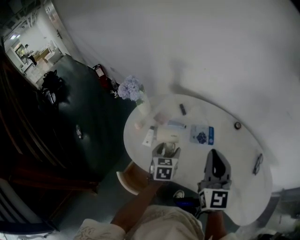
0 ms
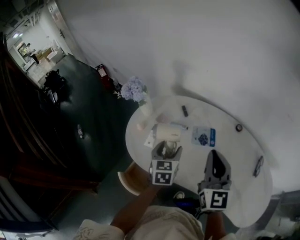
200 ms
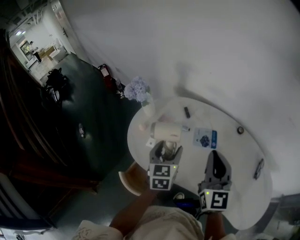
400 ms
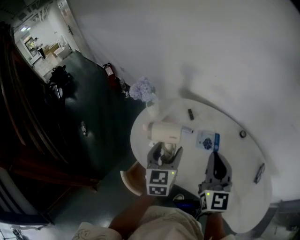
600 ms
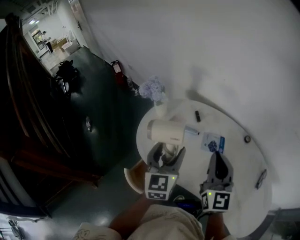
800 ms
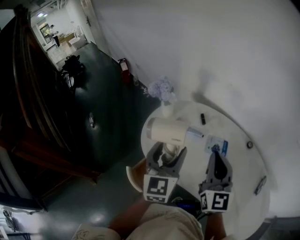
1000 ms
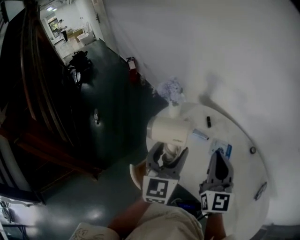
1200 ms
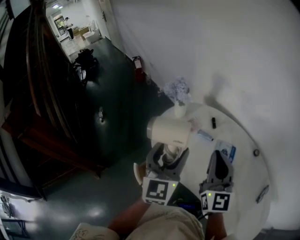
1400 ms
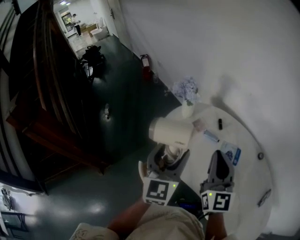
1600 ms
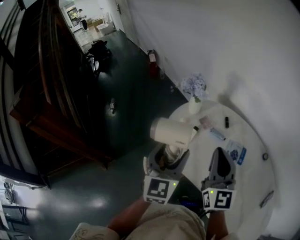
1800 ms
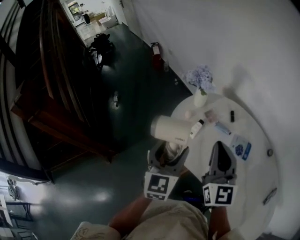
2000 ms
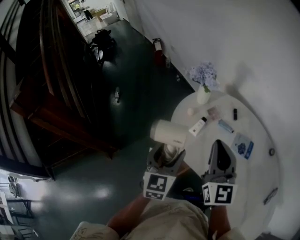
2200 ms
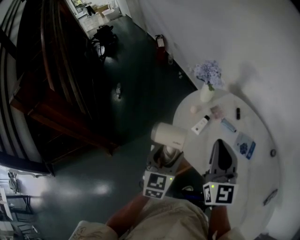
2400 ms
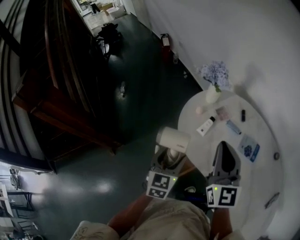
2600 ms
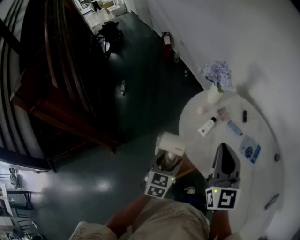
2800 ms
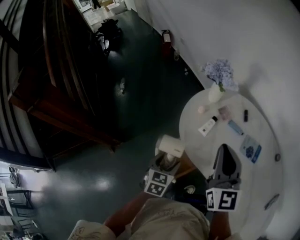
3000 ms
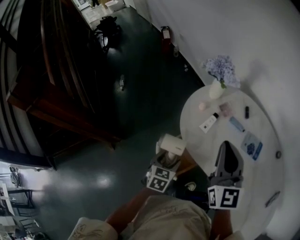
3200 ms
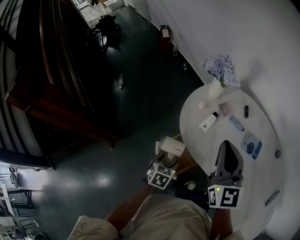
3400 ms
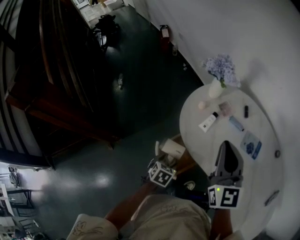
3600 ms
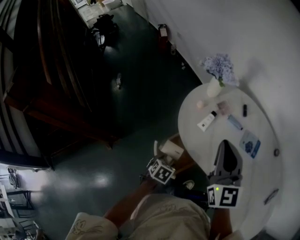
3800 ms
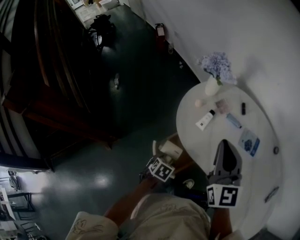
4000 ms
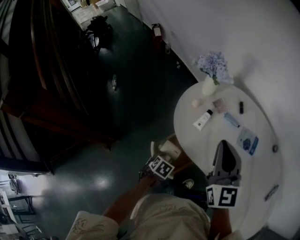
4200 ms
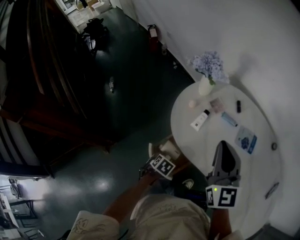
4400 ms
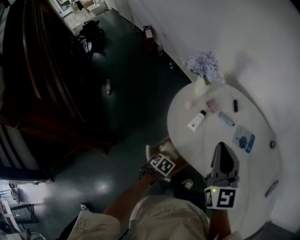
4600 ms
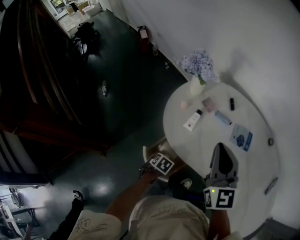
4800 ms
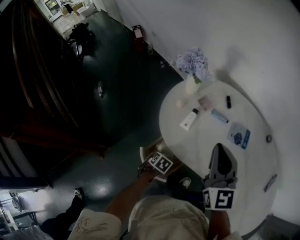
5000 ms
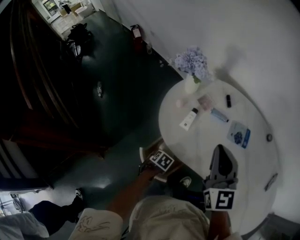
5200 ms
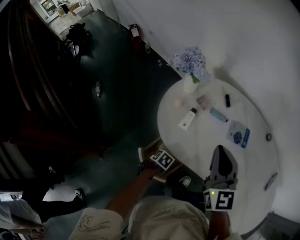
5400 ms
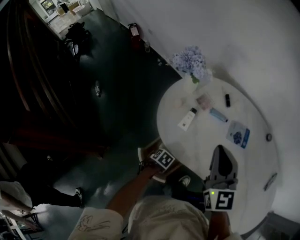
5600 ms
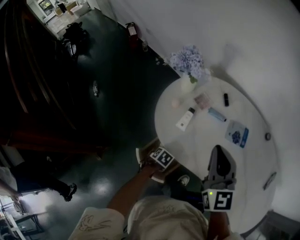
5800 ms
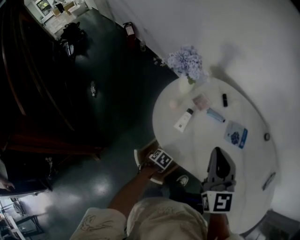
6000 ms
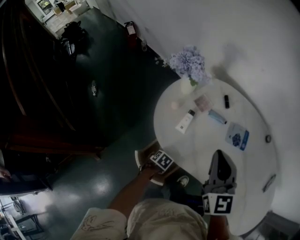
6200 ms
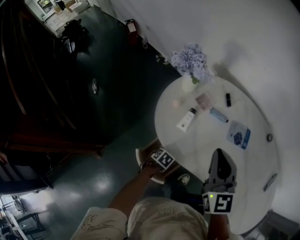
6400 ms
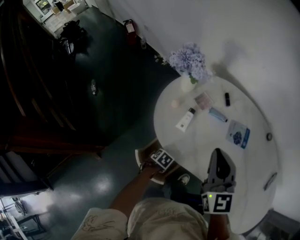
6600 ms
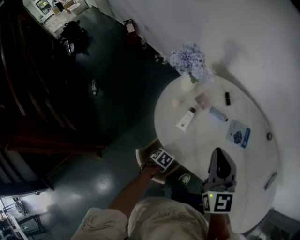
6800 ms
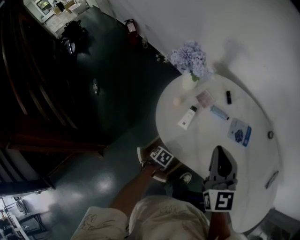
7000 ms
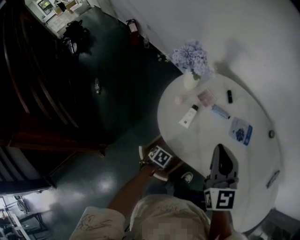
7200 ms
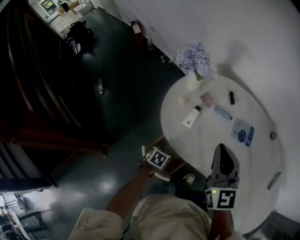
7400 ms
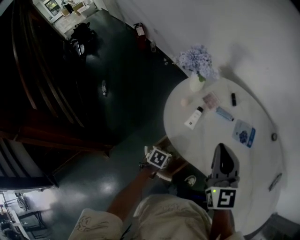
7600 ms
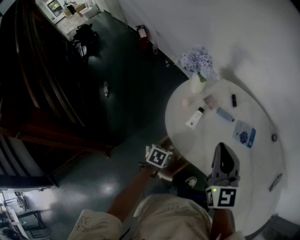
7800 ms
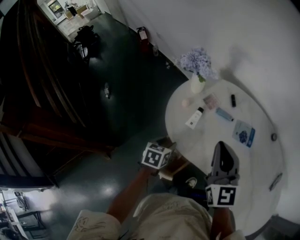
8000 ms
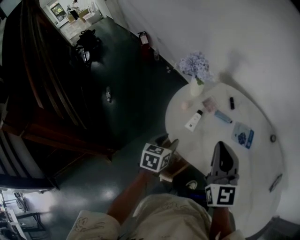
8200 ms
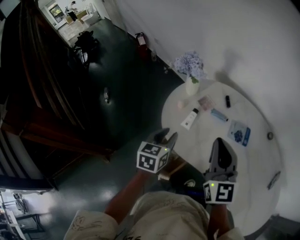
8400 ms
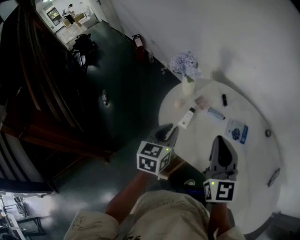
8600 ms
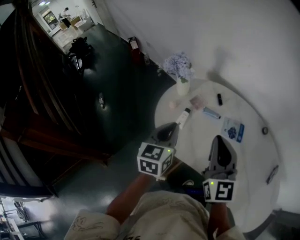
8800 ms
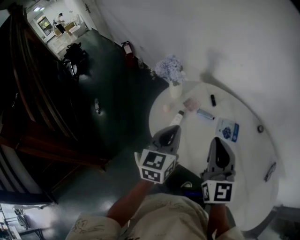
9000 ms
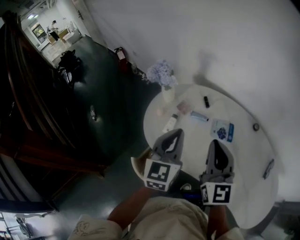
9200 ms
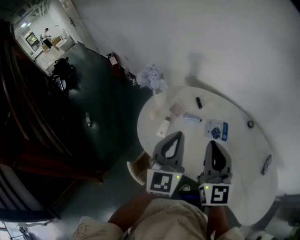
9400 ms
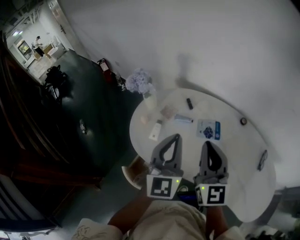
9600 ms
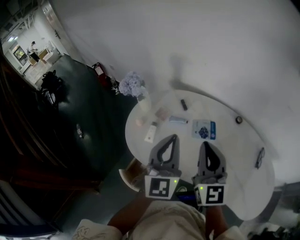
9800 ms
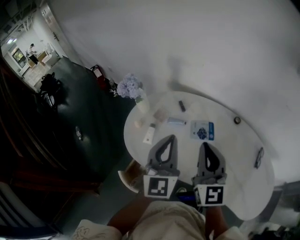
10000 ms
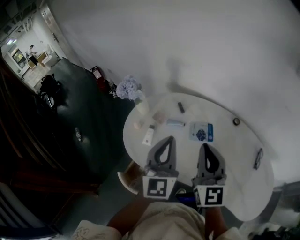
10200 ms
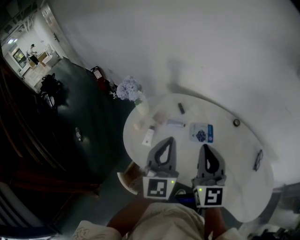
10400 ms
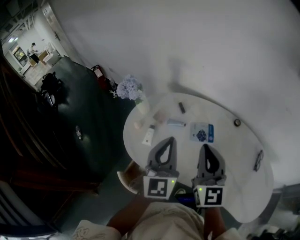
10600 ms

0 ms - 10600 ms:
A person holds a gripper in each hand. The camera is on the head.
0 ms - 1600 ms: The left gripper moves upward and to the left, approximately 25 cm, and angles its fingers upward, by approximately 30 degrees. The right gripper moves to the left, some 15 cm, and changes its angle by roughly 20 degrees.
1600 ms - 3000 ms: The left gripper is displaced downward by roughly 25 cm, and points its fingers some 40 degrees further downward. The right gripper goes roughly 10 cm to the left.
3000 ms - 4600 ms: The left gripper moves downward, approximately 15 cm, and tips its fingers downward by about 30 degrees.
4600 ms - 6000 ms: The left gripper moves downward, approximately 5 cm.
6000 ms - 7600 ms: The left gripper is displaced upward by approximately 10 cm.
7600 ms - 9000 ms: The left gripper is displaced upward by approximately 35 cm, angles its fingers upward, by some 50 degrees, and closes. Meanwhile the right gripper moves to the right, some 5 cm.
9000 ms - 10600 ms: The right gripper shifts approximately 10 cm to the right, while the left gripper moves to the right and upward, some 10 cm.

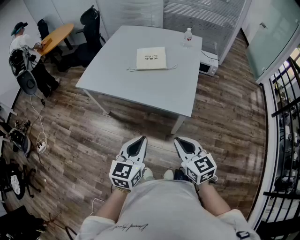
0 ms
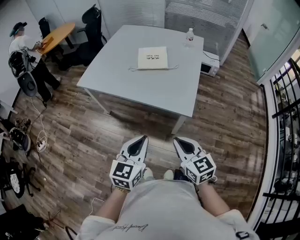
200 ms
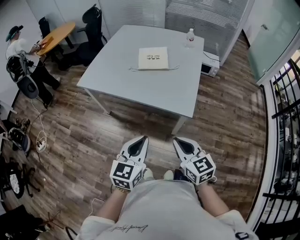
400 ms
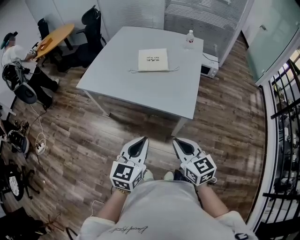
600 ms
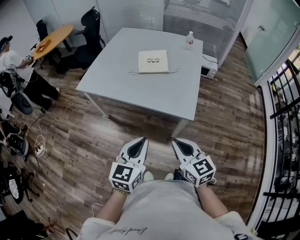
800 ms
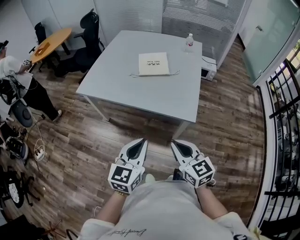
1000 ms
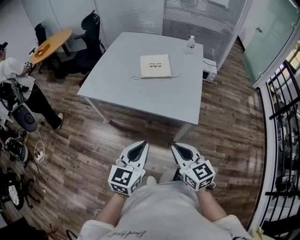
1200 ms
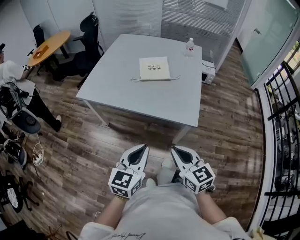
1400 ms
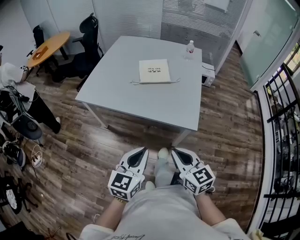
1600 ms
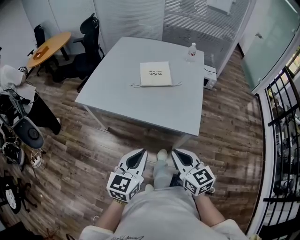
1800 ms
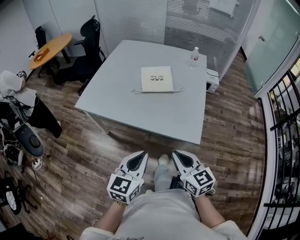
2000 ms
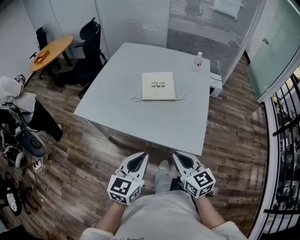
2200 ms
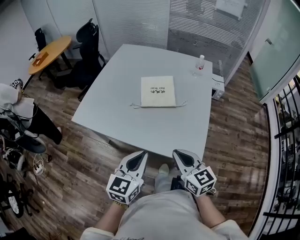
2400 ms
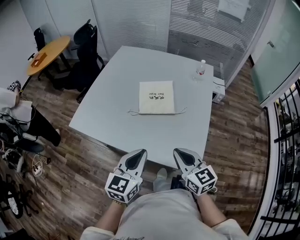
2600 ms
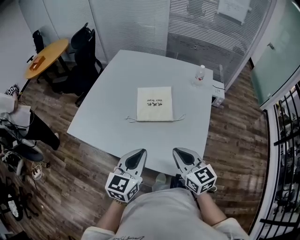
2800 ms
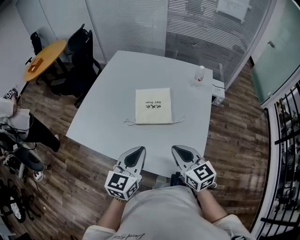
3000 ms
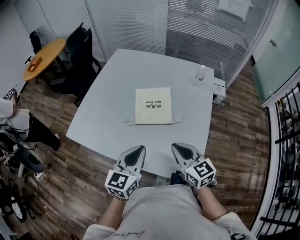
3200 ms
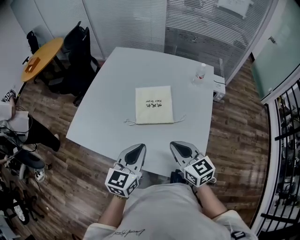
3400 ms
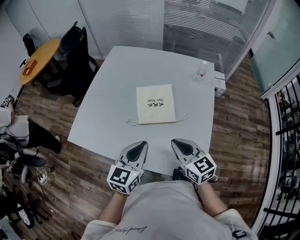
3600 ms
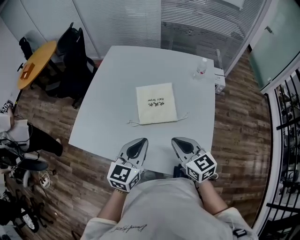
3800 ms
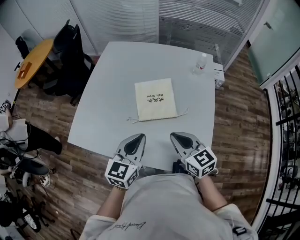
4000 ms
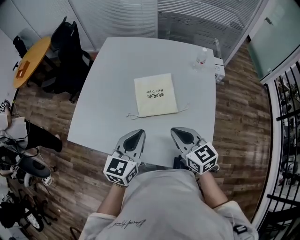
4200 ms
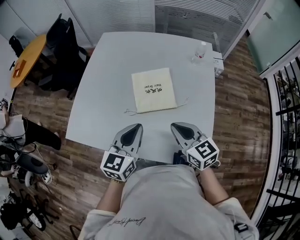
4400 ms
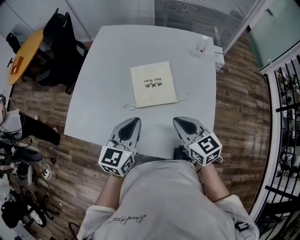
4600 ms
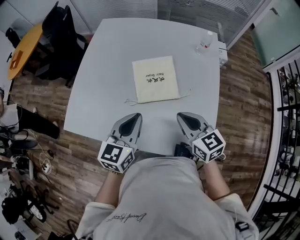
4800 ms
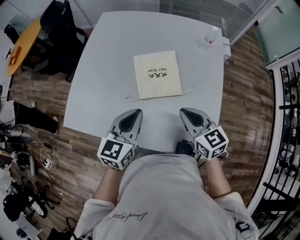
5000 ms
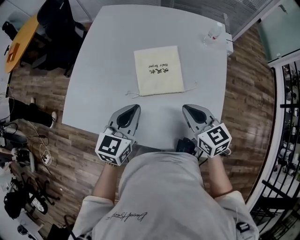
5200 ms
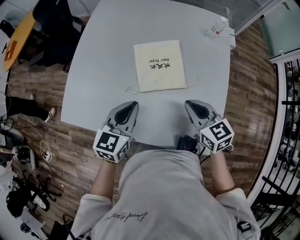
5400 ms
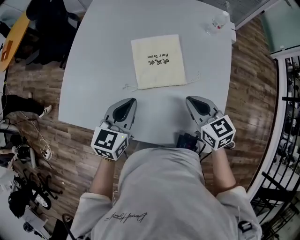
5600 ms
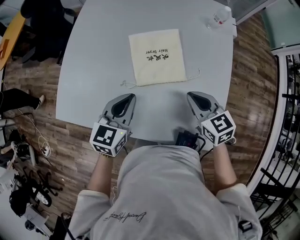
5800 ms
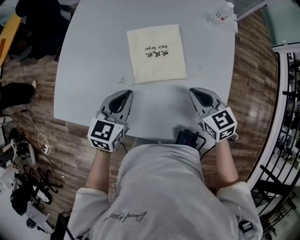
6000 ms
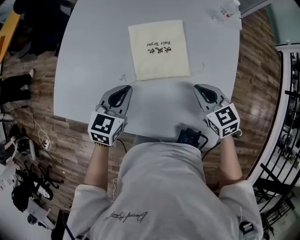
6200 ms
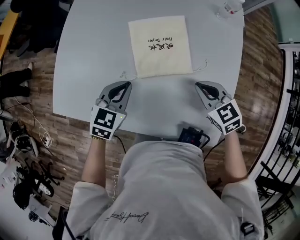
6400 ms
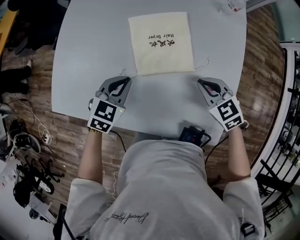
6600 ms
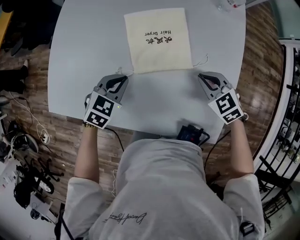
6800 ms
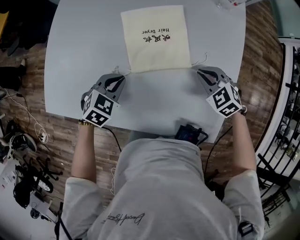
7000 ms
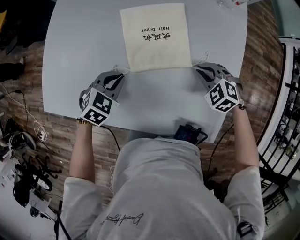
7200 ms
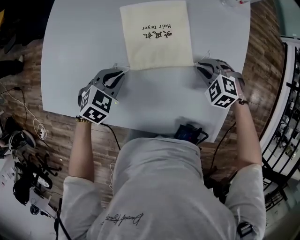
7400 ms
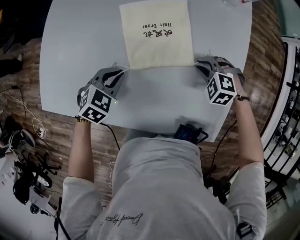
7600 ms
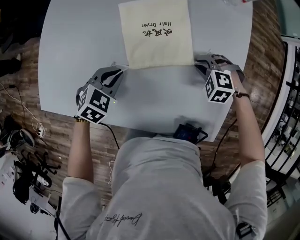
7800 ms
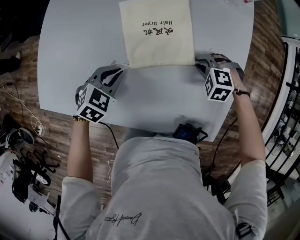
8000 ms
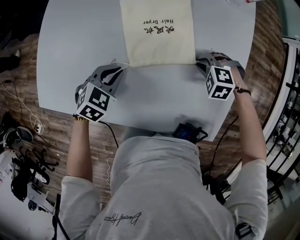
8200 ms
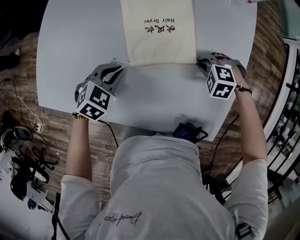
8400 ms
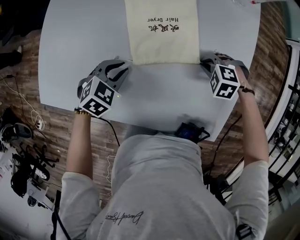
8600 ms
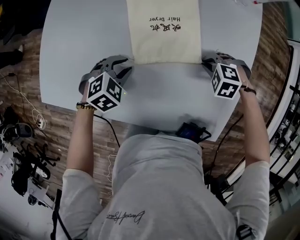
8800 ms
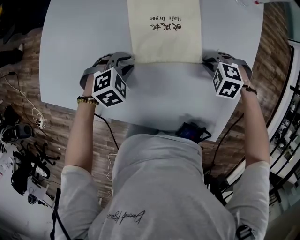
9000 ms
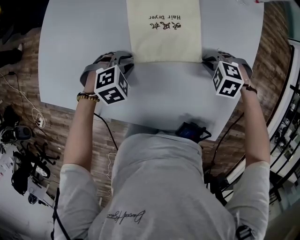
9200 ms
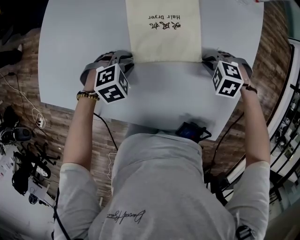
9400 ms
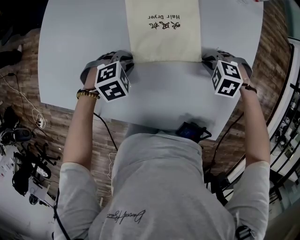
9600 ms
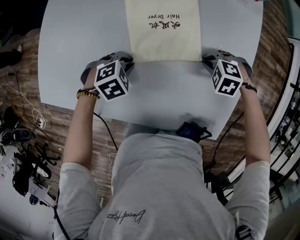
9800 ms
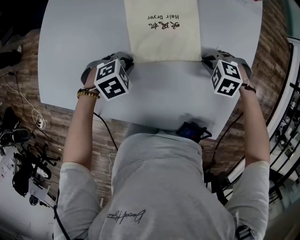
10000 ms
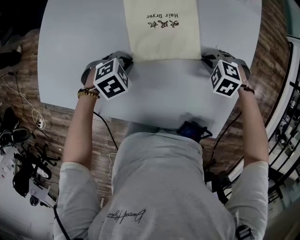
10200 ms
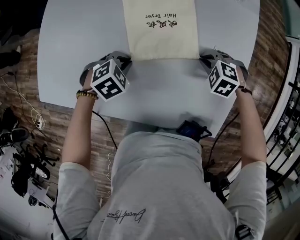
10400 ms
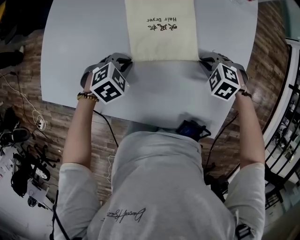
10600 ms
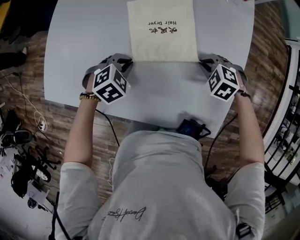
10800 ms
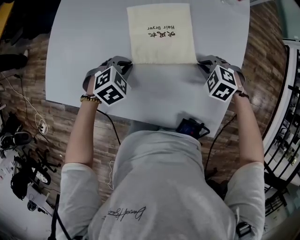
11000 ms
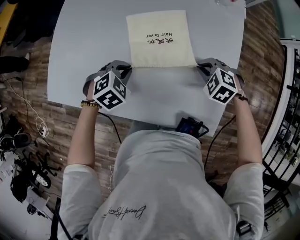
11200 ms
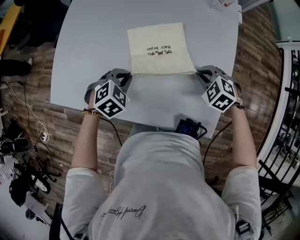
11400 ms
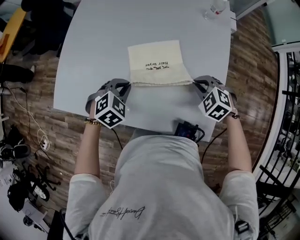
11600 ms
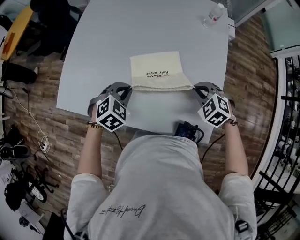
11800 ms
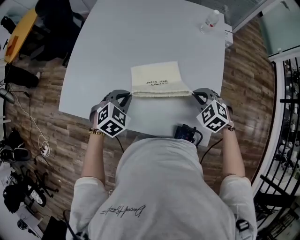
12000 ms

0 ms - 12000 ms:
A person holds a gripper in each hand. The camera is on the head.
0 ms - 1600 ms: The two grippers go about 5 cm to the left.
1600 ms - 3000 ms: The two grippers go some 30 cm forward.
3000 ms - 4400 ms: The grippers both shift forward by approximately 5 cm.
4400 ms - 6000 ms: The two grippers go roughly 10 cm downward and forward.
6000 ms - 7600 ms: Both grippers move downward, some 15 cm. The right gripper twists approximately 50 degrees counterclockwise, seen from behind, while the left gripper swivels about 40 degrees.
7600 ms - 9000 ms: The left gripper changes its angle by roughly 20 degrees, and opens.
9000 ms - 10400 ms: The left gripper closes its fingers.
10400 ms - 12000 ms: Both grippers move upward, approximately 15 cm. The right gripper turns by approximately 30 degrees; the left gripper changes its angle by roughly 20 degrees.

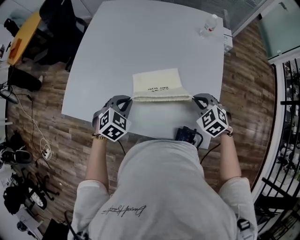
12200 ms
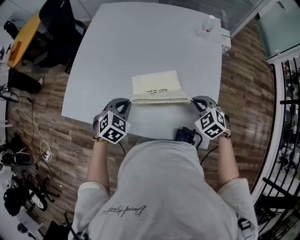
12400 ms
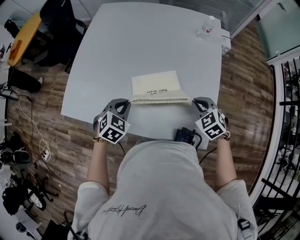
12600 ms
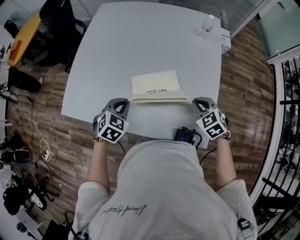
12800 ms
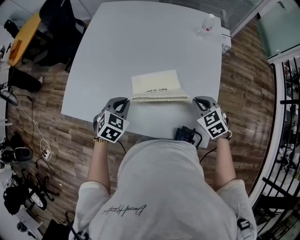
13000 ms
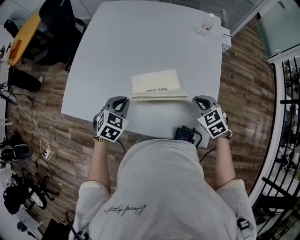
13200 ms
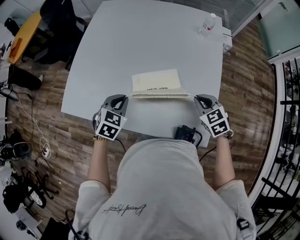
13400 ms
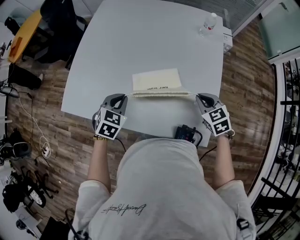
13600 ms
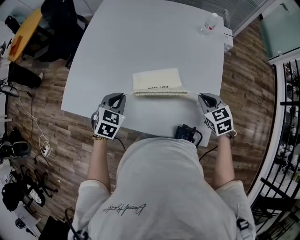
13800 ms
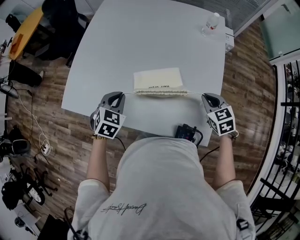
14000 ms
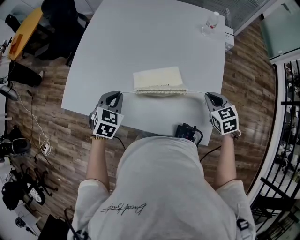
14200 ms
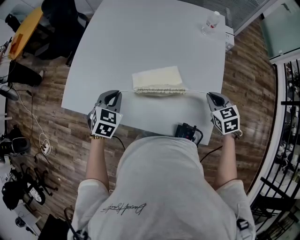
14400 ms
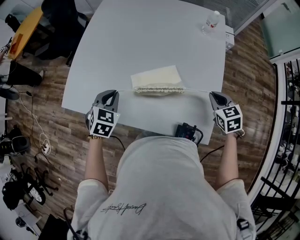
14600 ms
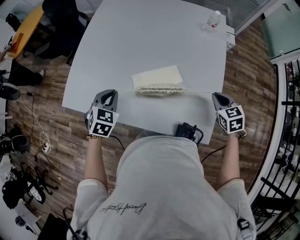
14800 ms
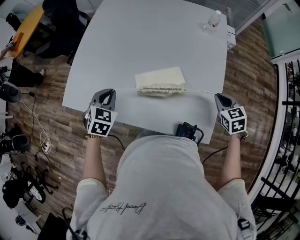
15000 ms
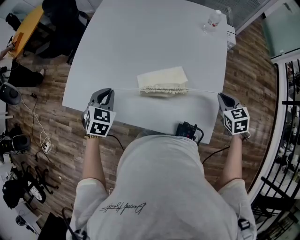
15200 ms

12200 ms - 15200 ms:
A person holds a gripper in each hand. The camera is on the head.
12200 ms - 13800 ms: The right gripper turns by about 30 degrees.
13800 ms - 15200 ms: The right gripper travels to the right by roughly 10 cm. The left gripper shifts some 5 cm to the left.
